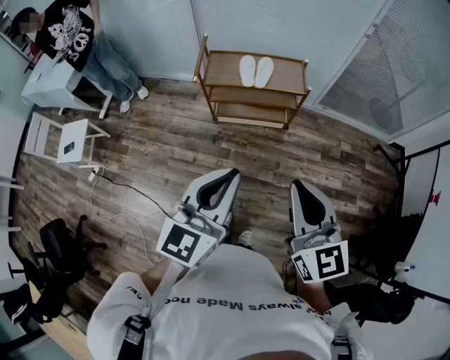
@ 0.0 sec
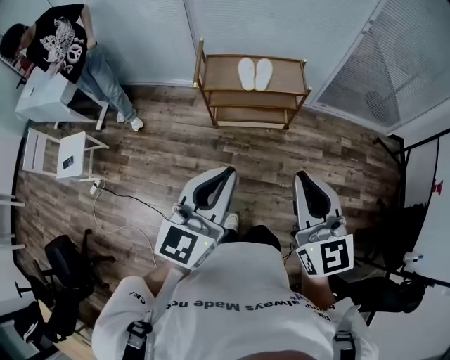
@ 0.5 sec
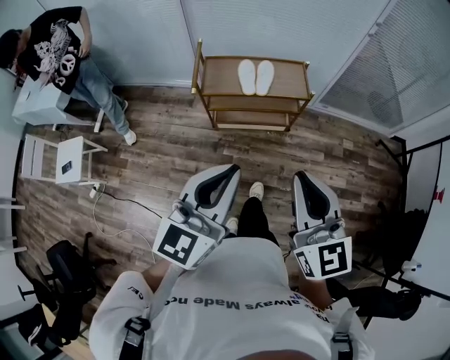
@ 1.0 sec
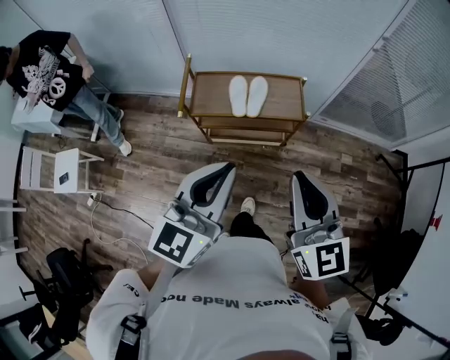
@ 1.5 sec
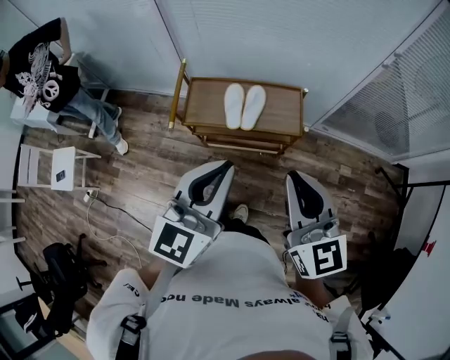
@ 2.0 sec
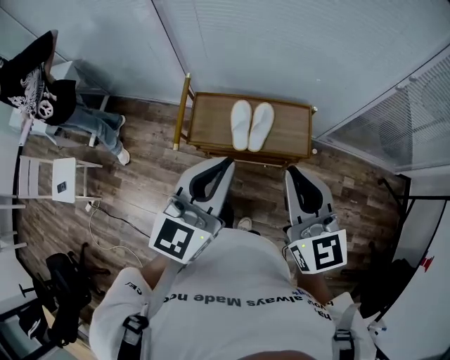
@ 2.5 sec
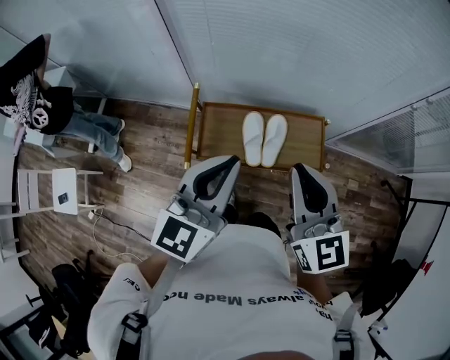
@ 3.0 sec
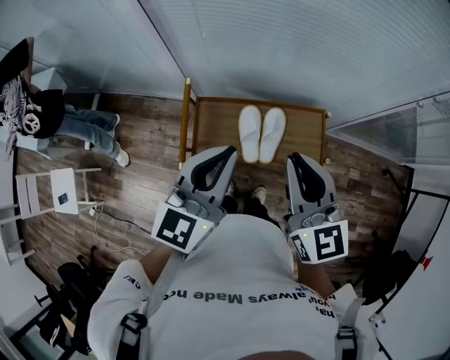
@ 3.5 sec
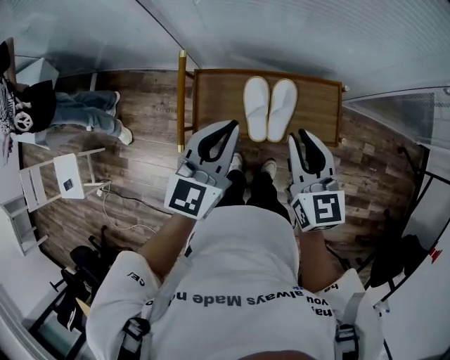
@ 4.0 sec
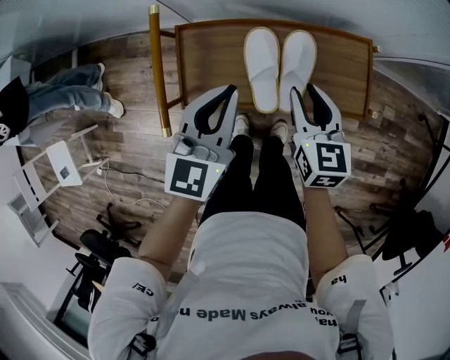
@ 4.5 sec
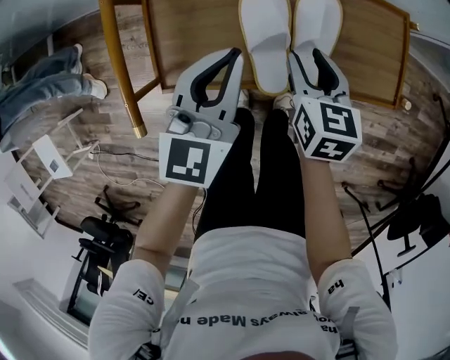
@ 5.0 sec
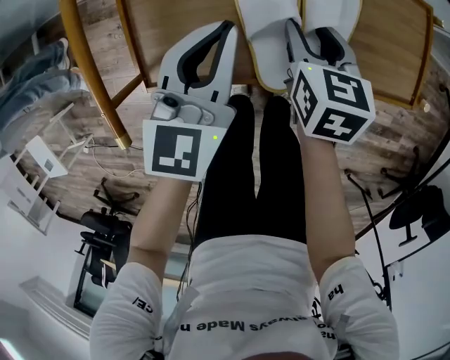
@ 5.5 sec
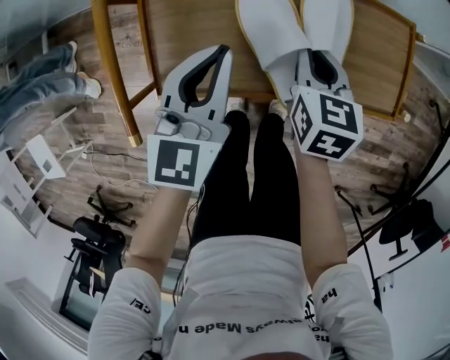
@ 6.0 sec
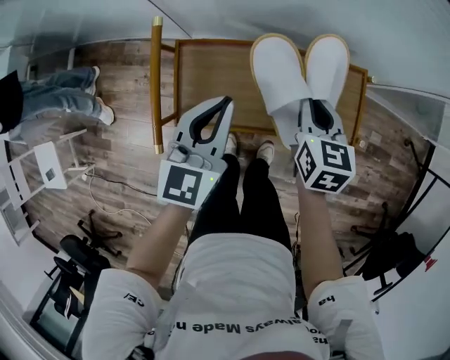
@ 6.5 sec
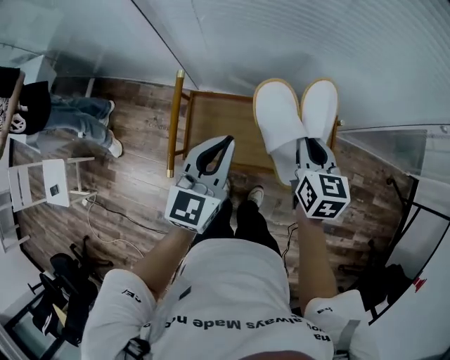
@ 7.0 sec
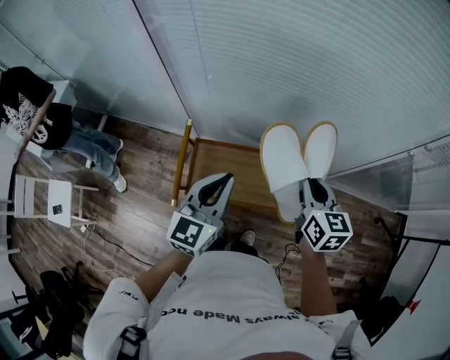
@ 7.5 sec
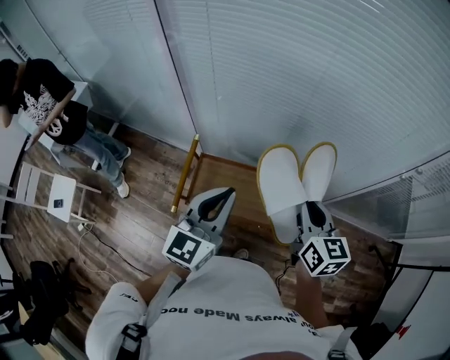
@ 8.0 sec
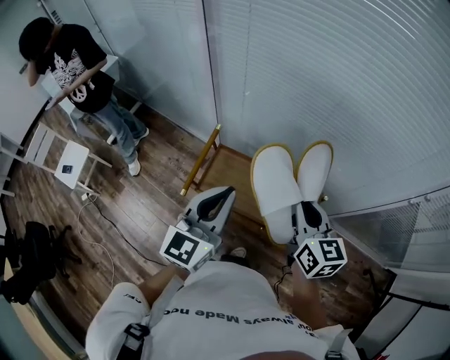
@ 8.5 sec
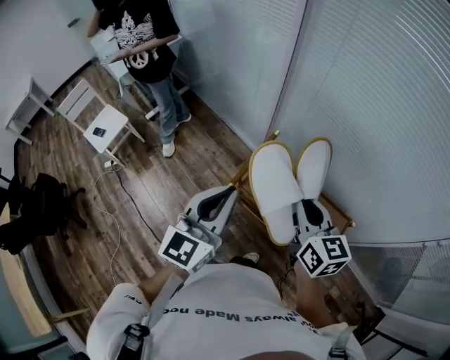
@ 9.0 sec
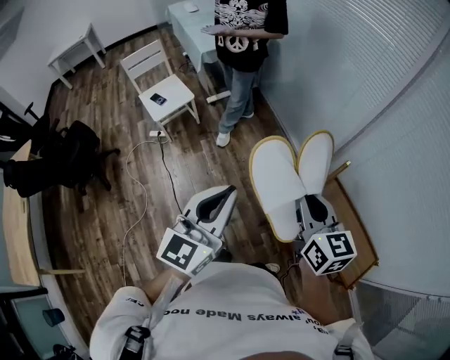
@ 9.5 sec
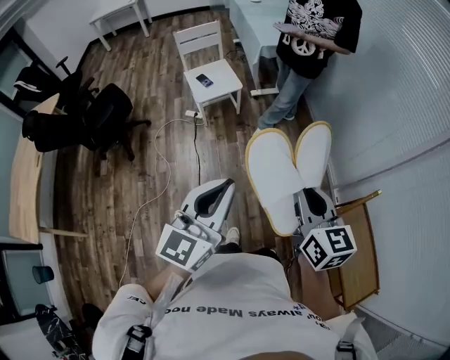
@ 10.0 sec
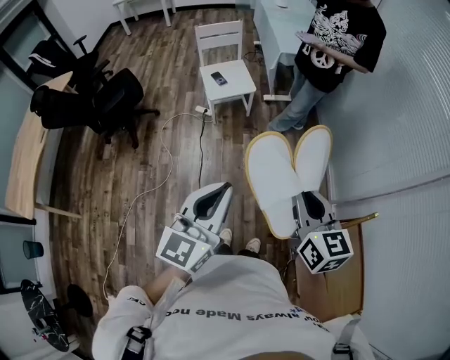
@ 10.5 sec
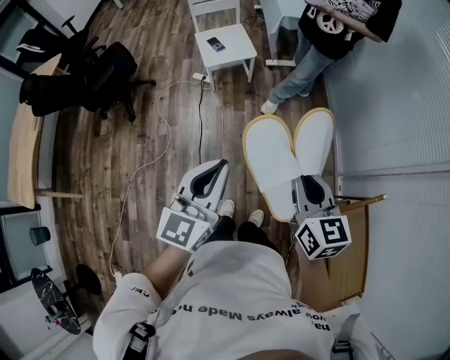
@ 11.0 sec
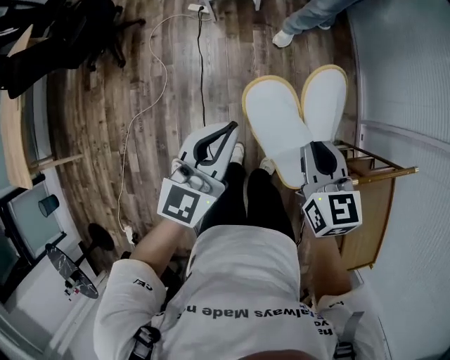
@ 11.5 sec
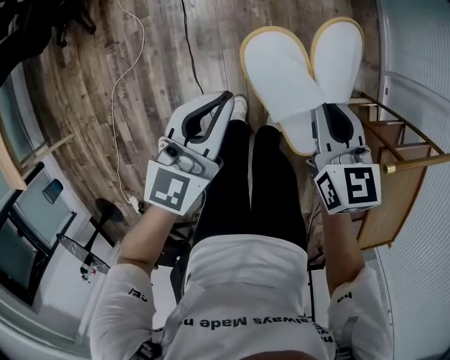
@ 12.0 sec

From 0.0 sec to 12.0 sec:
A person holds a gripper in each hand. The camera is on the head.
From 0.0 sec to 2.0 sec: Both grippers travel together forward, about 35 cm.
From 2.0 sec to 4.0 sec: Both grippers travel together forward and downward, roughly 35 cm.
From 4.0 sec to 6.0 sec: The grippers both shift downward by approximately 30 cm. The right gripper swivels some 30 degrees, and opens and closes again.
From 6.0 sec to 8.0 sec: Both grippers travel together upward, roughly 50 cm. The right gripper changes its angle by some 30 degrees.
From 8.0 sec to 10.0 sec: The pair of grippers is taken about 70 cm. The right gripper changes its angle by some 60 degrees, while the left gripper changes its angle by roughly 60 degrees.
From 10.0 sec to 12.0 sec: The two grippers go some 40 cm downward. The right gripper swivels about 20 degrees.

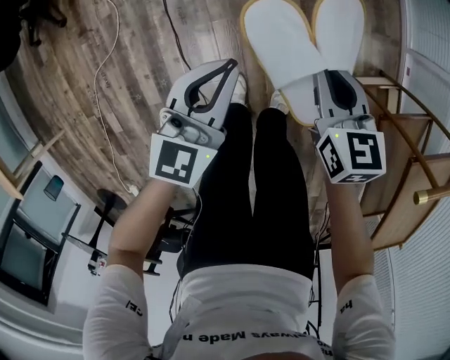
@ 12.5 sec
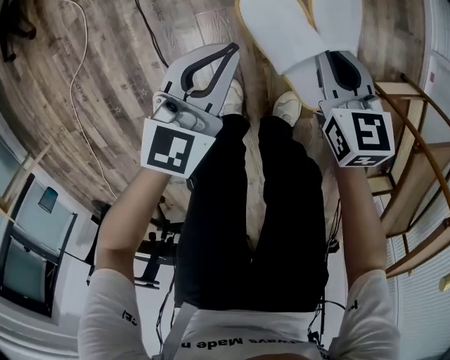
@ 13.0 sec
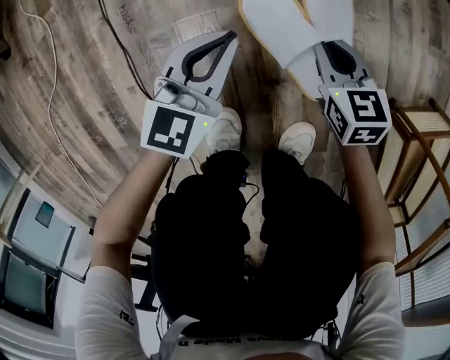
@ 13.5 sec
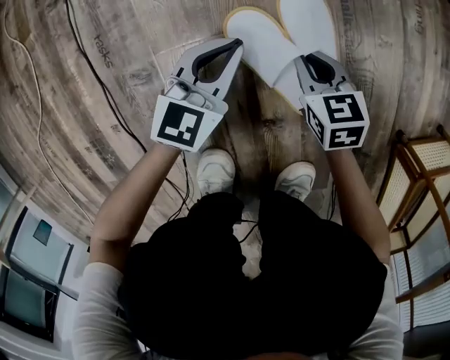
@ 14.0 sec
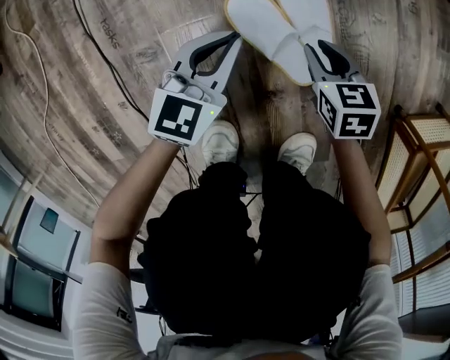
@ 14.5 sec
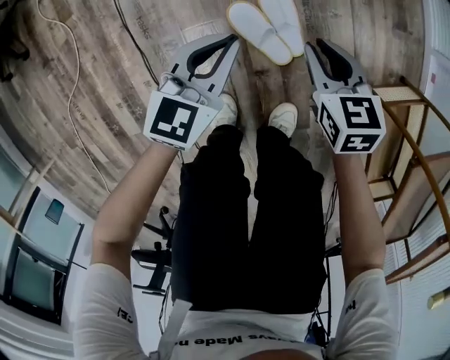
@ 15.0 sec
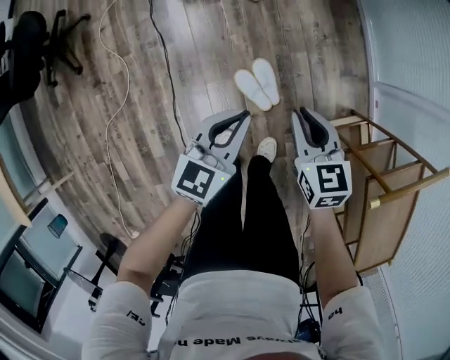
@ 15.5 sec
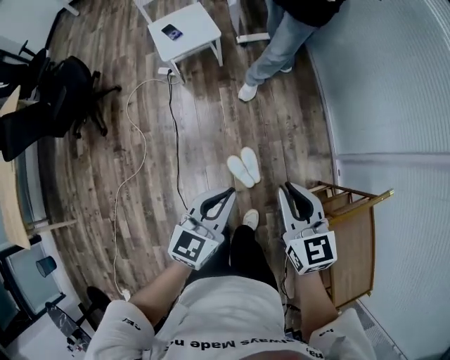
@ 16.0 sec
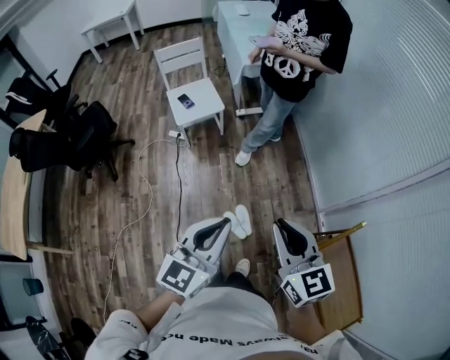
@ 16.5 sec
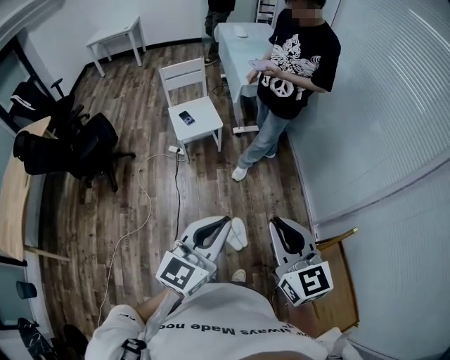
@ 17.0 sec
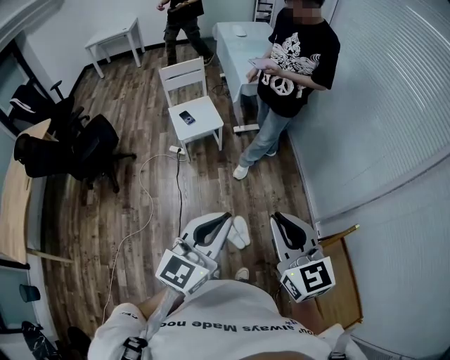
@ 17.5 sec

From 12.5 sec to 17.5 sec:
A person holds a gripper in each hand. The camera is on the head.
From 12.5 sec to 15.0 sec: The two grippers go roughly 30 cm downward.
From 15.0 sec to 17.5 sec: Both grippers travel together upward, approximately 90 cm. The left gripper turns by about 30 degrees. The right gripper tilts its fingers some 40 degrees upward.

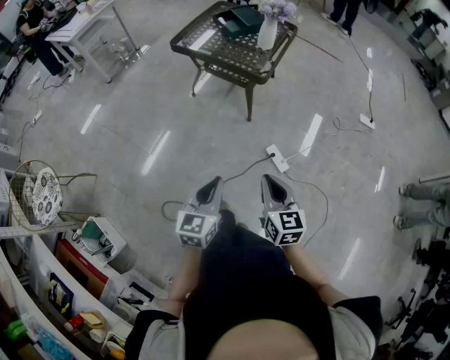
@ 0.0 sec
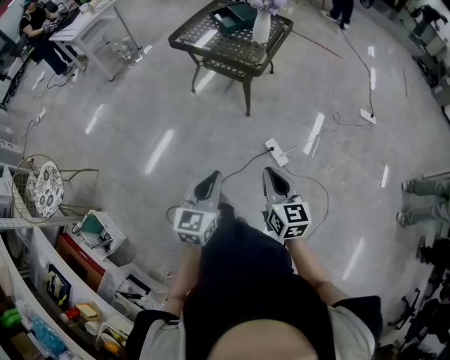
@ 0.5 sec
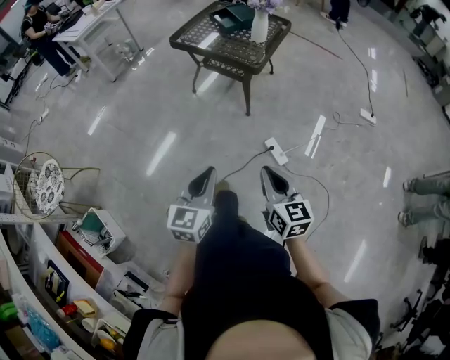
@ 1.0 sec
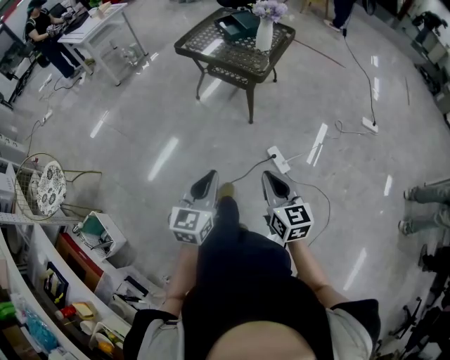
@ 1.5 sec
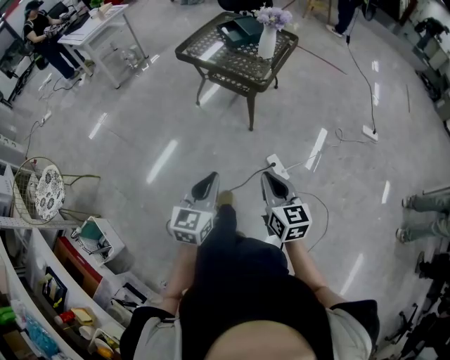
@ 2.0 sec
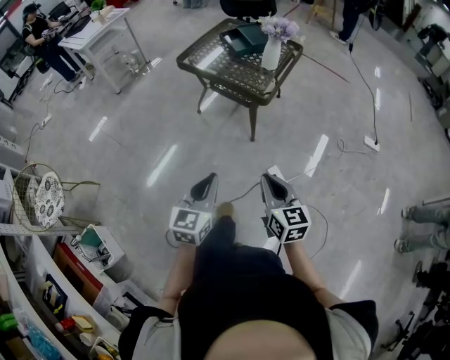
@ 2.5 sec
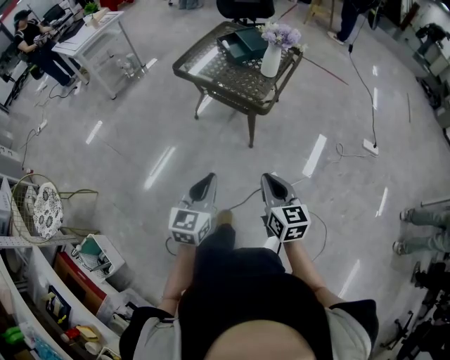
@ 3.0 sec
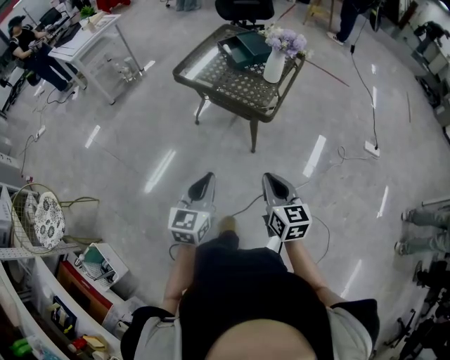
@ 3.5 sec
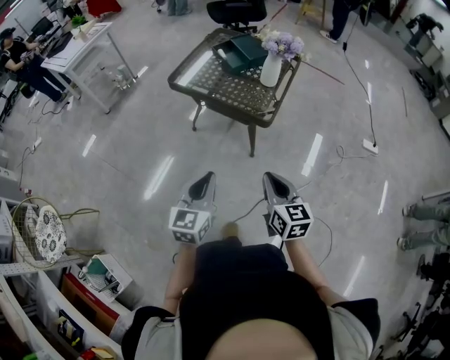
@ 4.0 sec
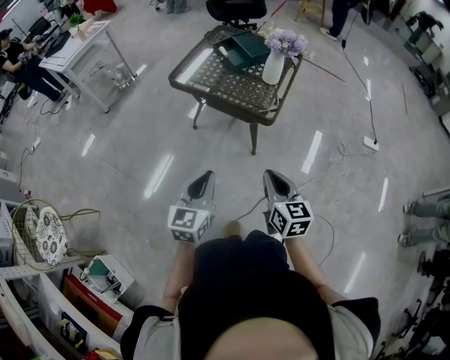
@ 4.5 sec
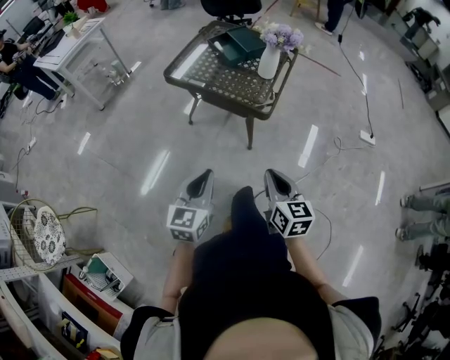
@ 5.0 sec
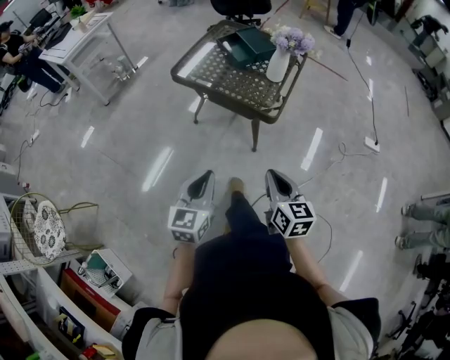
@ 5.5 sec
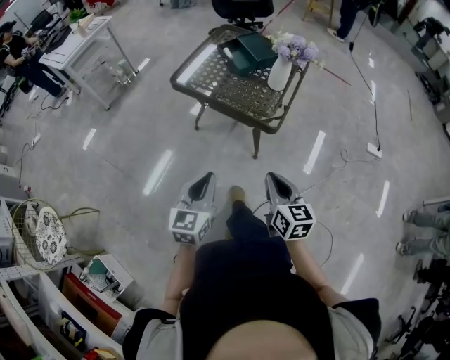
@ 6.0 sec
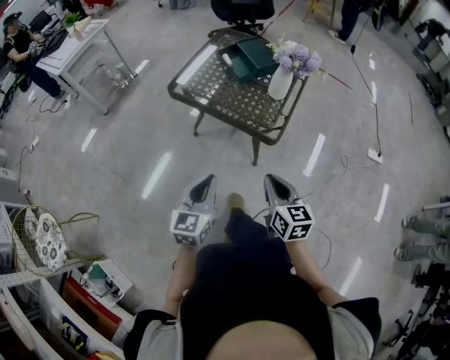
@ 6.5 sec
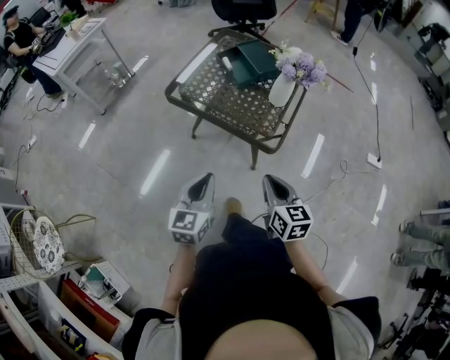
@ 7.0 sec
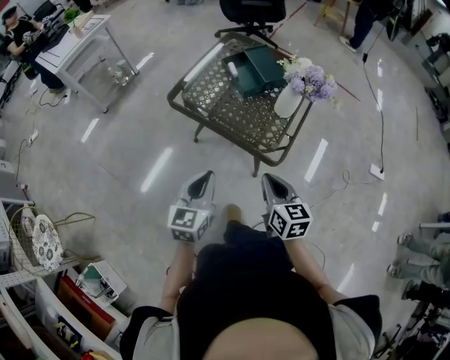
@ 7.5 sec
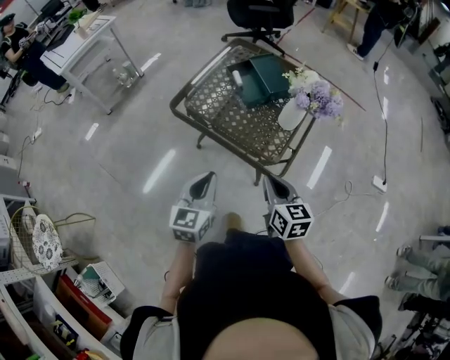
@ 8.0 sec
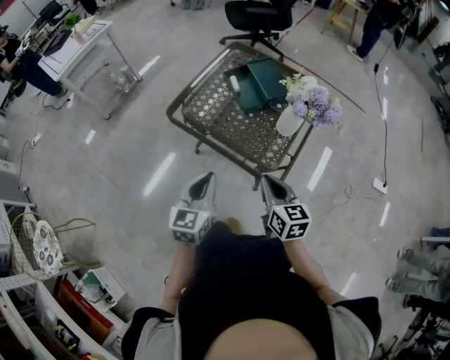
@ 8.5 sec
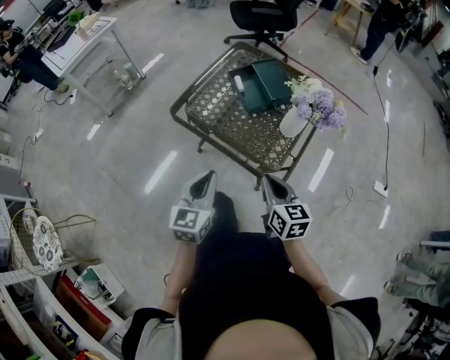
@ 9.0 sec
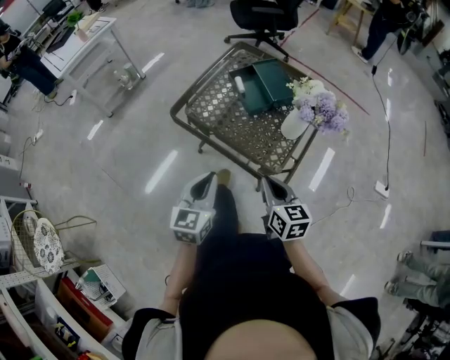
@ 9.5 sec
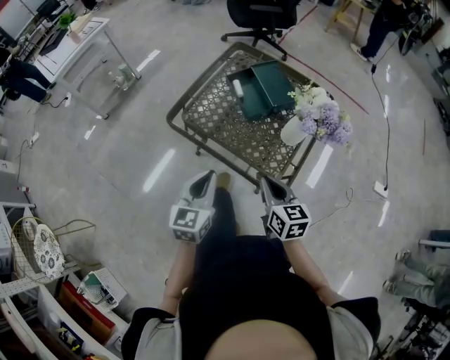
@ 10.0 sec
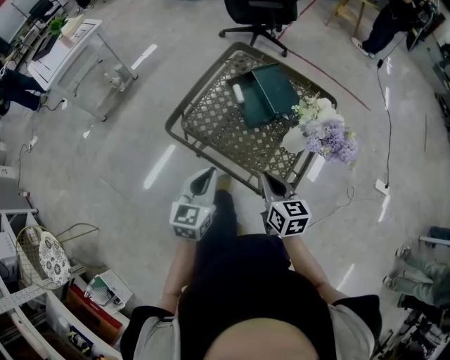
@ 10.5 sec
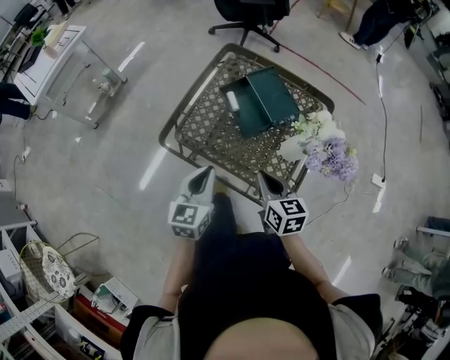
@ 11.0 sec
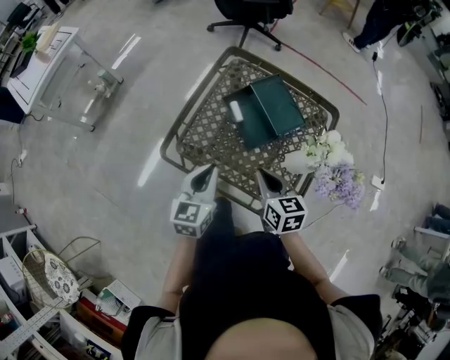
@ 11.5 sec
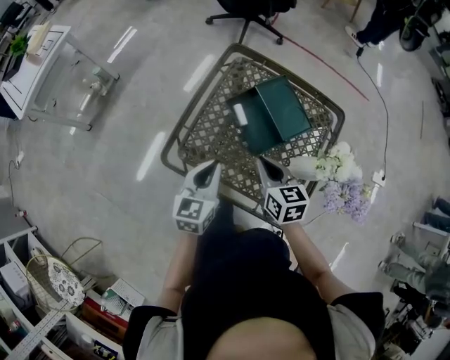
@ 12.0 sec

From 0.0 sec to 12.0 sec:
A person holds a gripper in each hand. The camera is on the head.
From 2.0 sec to 4.0 sec: The grippers both shift forward by about 20 cm.
From 4.0 sec to 6.0 sec: Both grippers move forward, approximately 5 cm.
From 6.0 sec to 8.0 sec: The grippers both shift forward by roughly 20 cm.
From 8.0 sec to 10.0 sec: The two grippers go some 10 cm forward.
From 10.0 sec to 12.0 sec: Both grippers travel together forward, some 25 cm.
